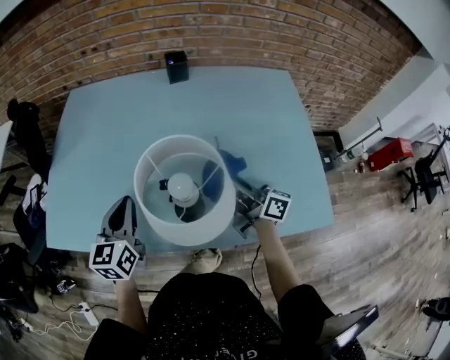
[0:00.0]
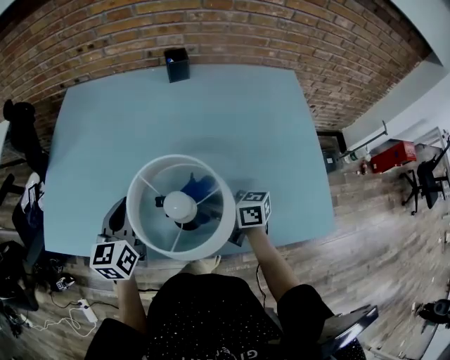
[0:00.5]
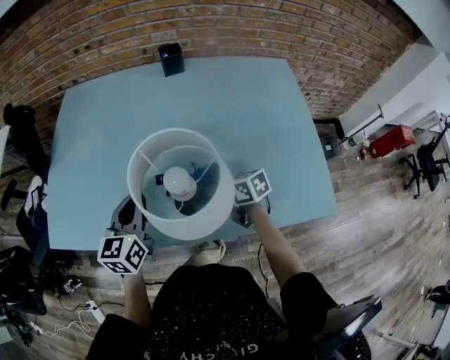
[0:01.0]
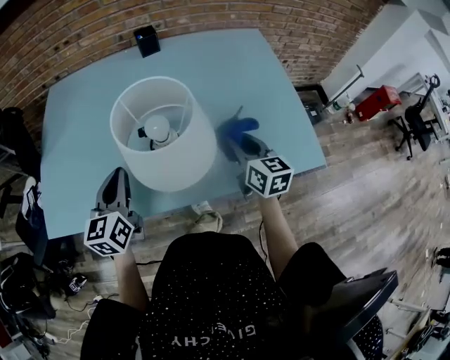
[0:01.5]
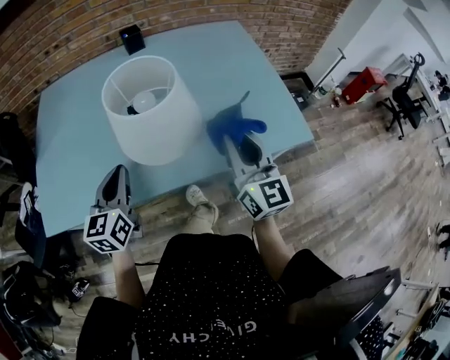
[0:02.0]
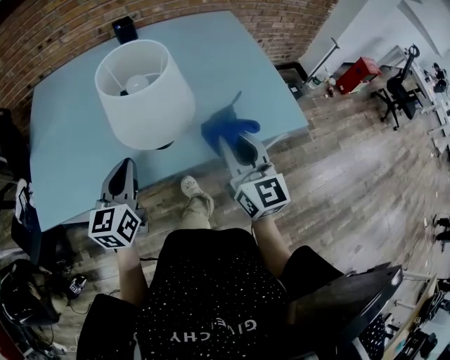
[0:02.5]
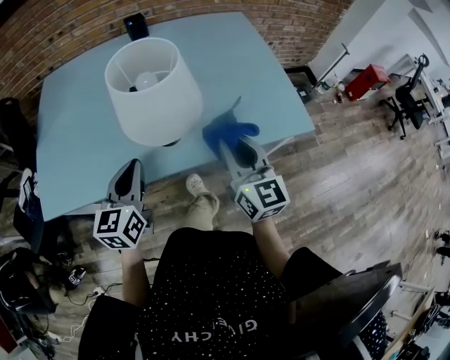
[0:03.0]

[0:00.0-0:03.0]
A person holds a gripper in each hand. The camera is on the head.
0:00.0 to 0:01.5: The right gripper moves some 10 cm downward and comes back, and turns by some 50 degrees.
0:01.5 to 0:03.0: The left gripper moves backward and to the right, about 10 cm. The right gripper moves backward and upward, approximately 15 cm.

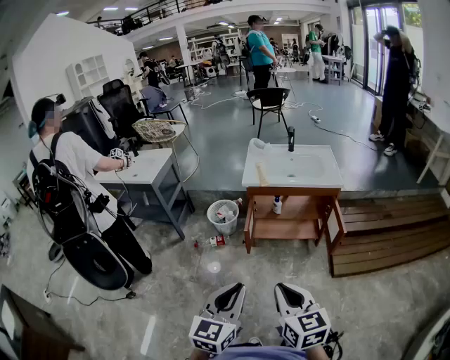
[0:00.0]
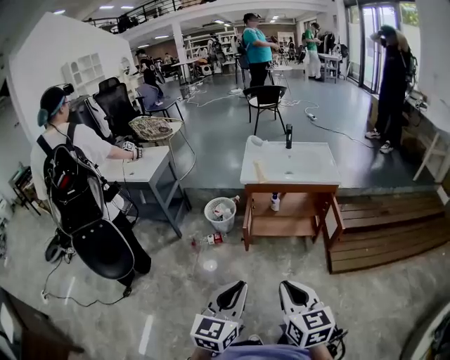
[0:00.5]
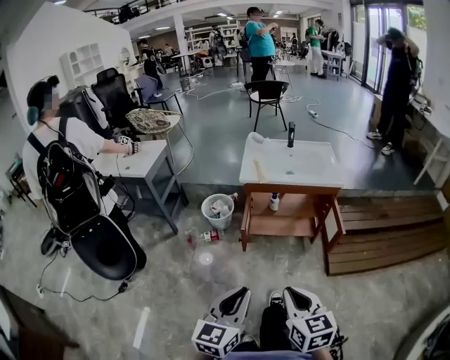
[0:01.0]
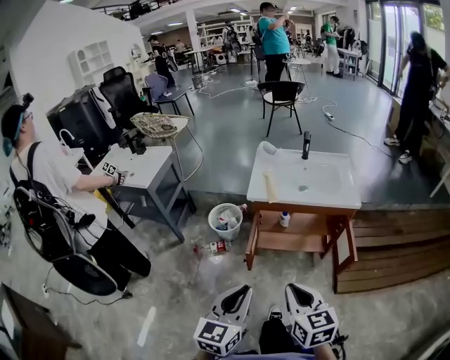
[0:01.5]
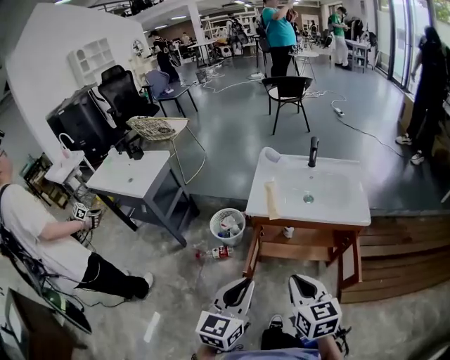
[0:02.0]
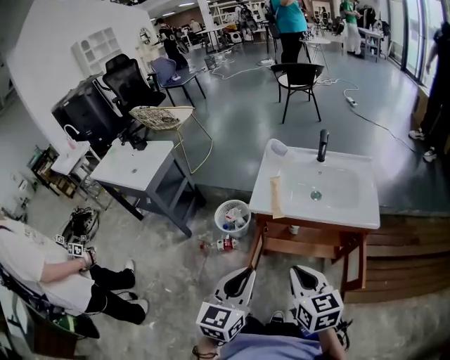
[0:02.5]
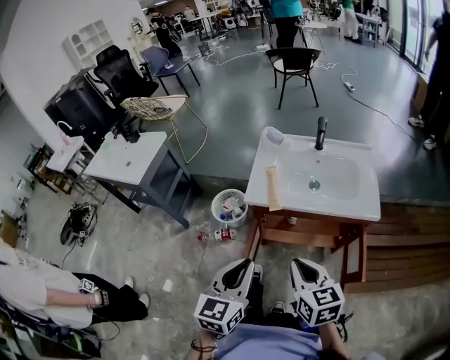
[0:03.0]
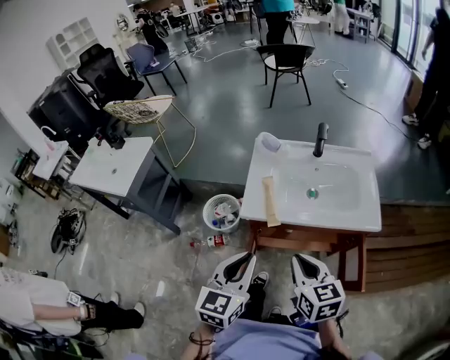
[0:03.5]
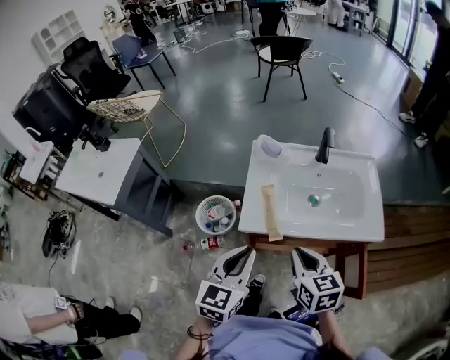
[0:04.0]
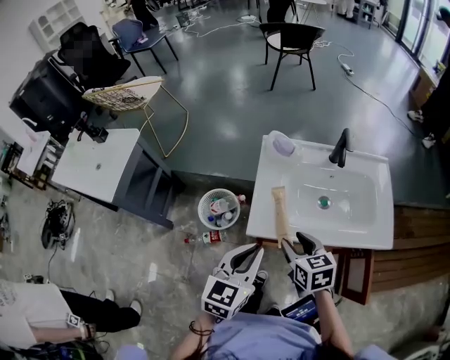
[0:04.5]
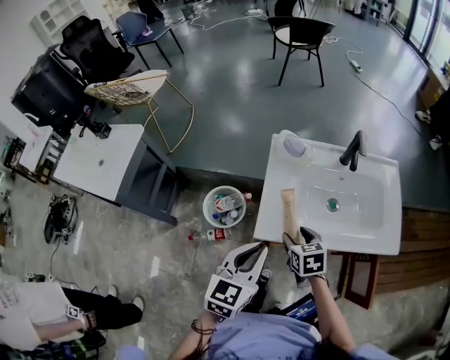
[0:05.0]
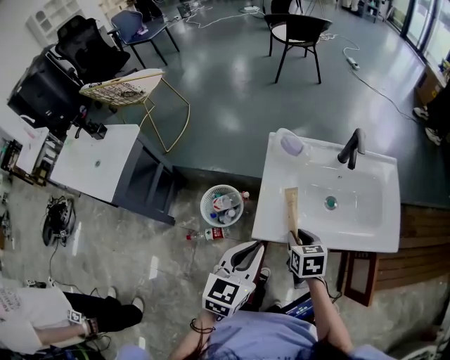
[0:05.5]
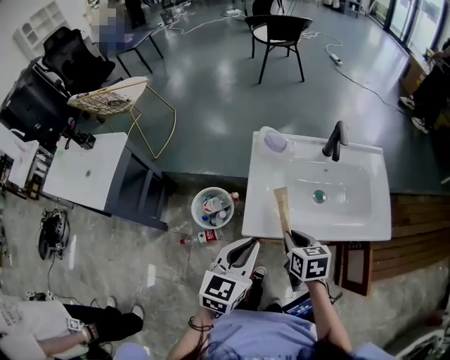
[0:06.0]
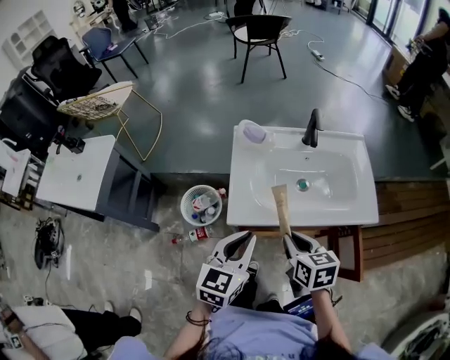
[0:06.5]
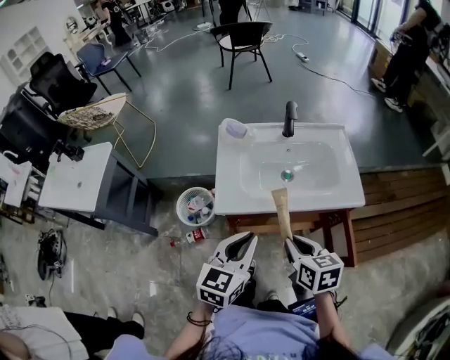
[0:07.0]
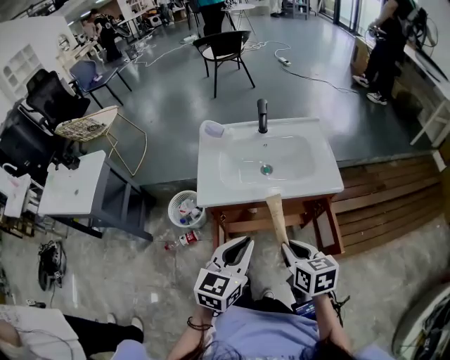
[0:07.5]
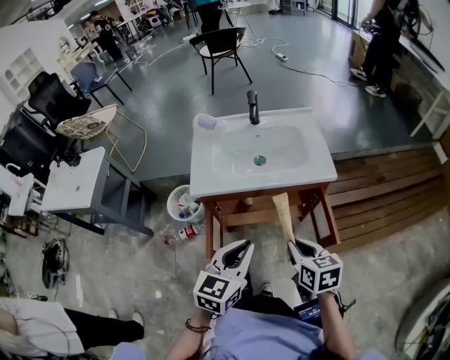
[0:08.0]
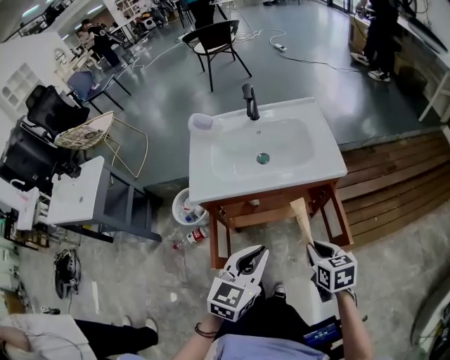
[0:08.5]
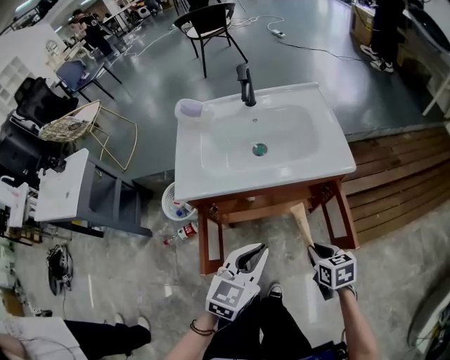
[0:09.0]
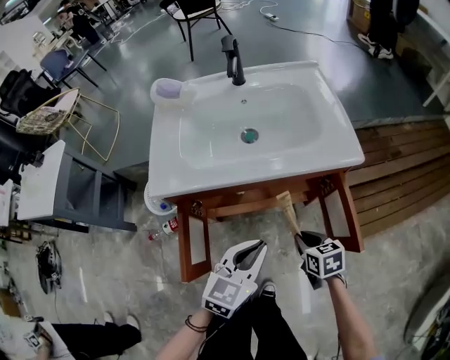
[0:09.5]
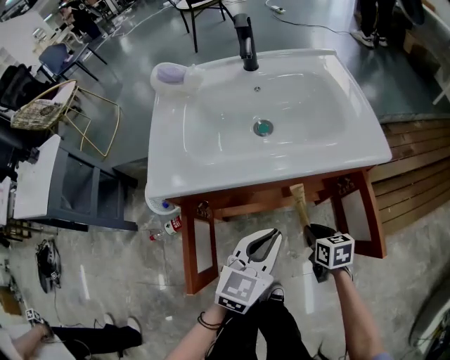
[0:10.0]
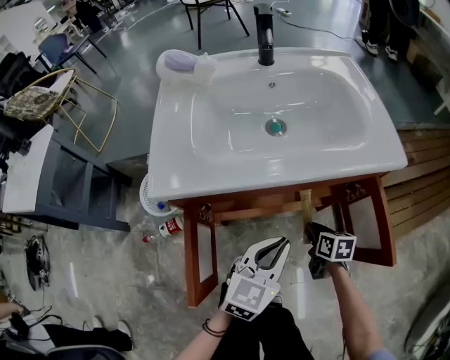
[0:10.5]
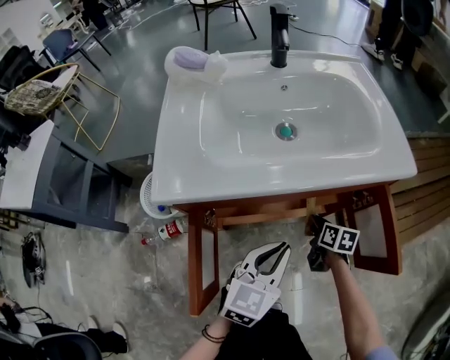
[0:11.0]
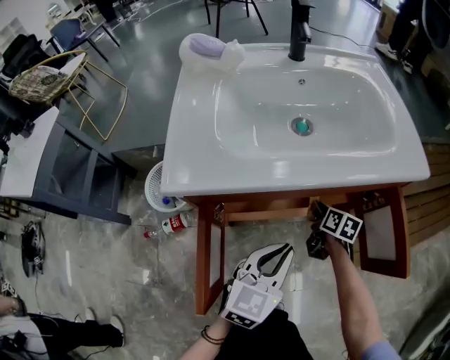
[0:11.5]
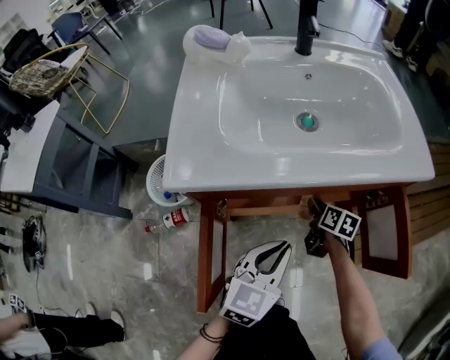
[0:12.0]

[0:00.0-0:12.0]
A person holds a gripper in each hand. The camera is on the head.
0:00.0 to 0:02.0: The grippers both shift forward by about 30 cm.
0:02.0 to 0:04.0: The grippers both shift forward by roughly 25 cm.
0:04.0 to 0:06.0: The right gripper moves downward and forward, about 15 cm, and opens and closes again. The left gripper is displaced forward by about 5 cm.
0:06.0 to 0:08.0: Both grippers travel together backward and to the right, about 30 cm.
0:08.0 to 0:10.0: The right gripper is displaced downward by approximately 35 cm. The left gripper is displaced downward and forward by some 25 cm.
0:10.0 to 0:12.0: The left gripper goes roughly 10 cm downward and to the left. Meanwhile the right gripper travels forward, to the left and downward by about 15 cm, and swivels approximately 20 degrees.

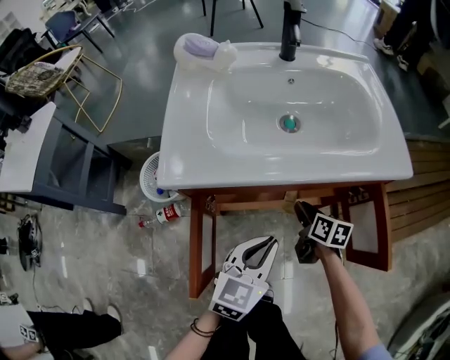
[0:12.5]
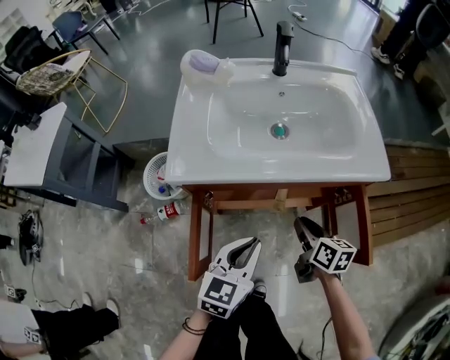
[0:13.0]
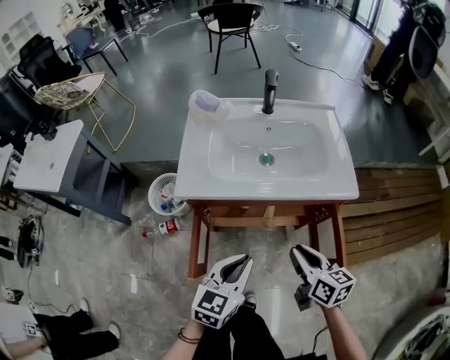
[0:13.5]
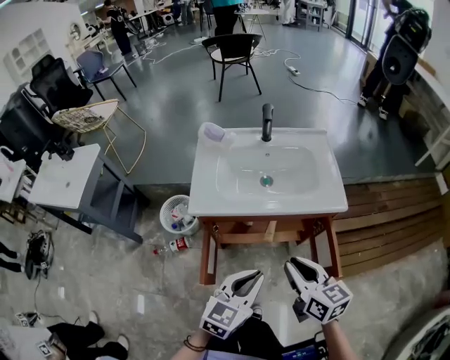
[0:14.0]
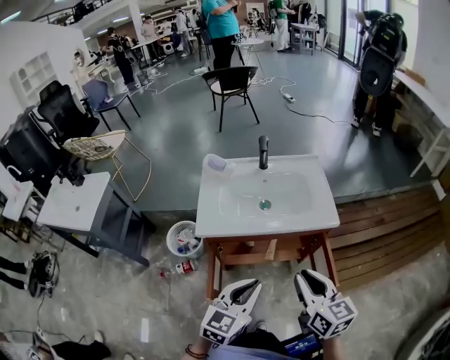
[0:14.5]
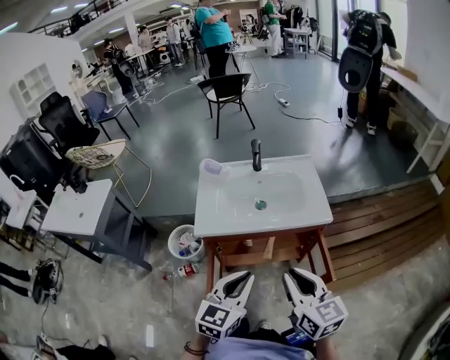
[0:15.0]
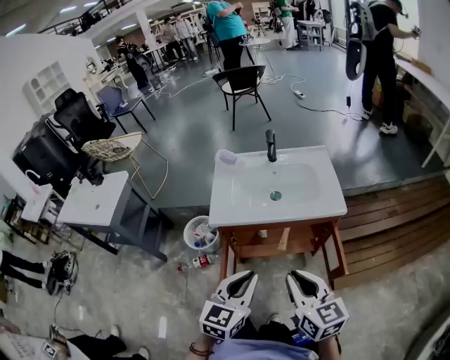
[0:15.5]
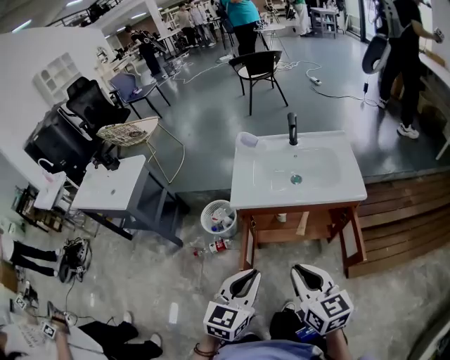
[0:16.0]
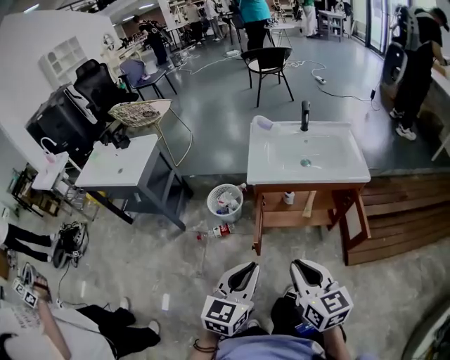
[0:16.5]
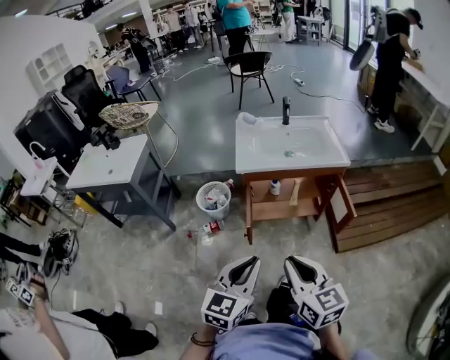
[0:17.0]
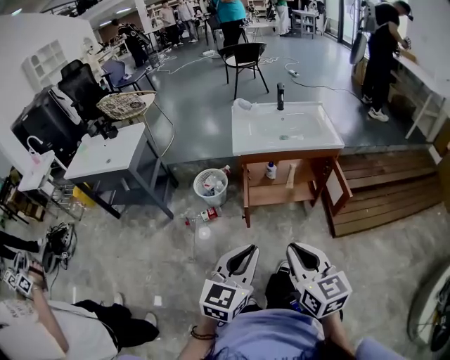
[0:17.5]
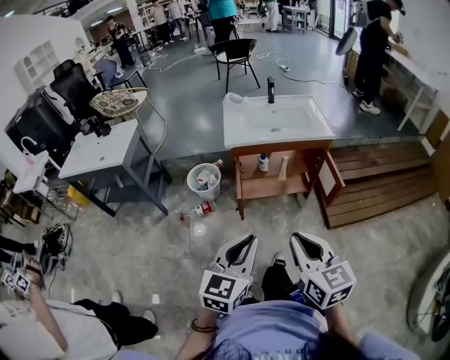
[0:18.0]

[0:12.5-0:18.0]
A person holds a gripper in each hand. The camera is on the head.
0:12.5 to 0:14.5: The left gripper shifts roughly 30 cm upward, while the right gripper shifts some 50 cm upward and backward, and swivels roughly 30 degrees.
0:14.5 to 0:16.0: The two grippers go approximately 10 cm to the left and backward.
0:16.0 to 0:18.0: Both grippers move backward, approximately 25 cm.

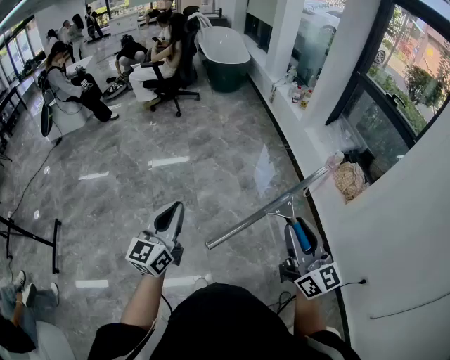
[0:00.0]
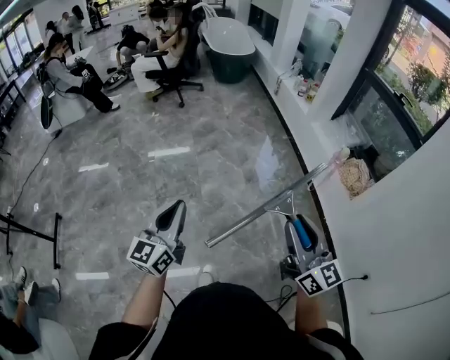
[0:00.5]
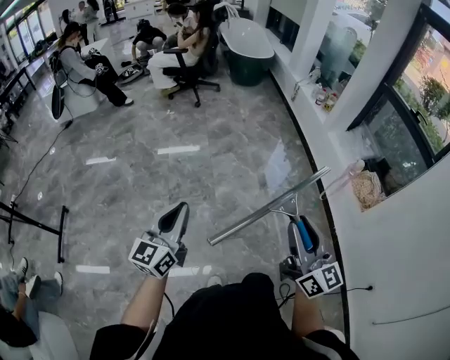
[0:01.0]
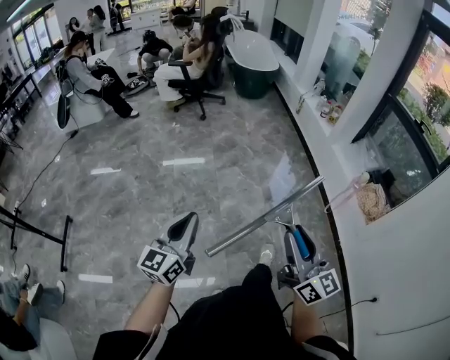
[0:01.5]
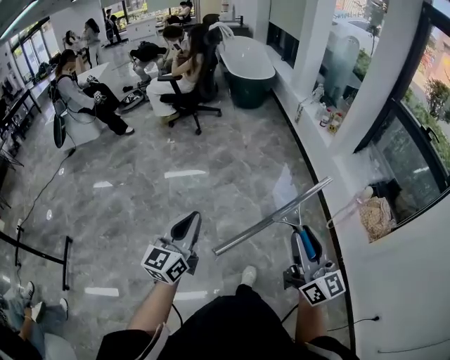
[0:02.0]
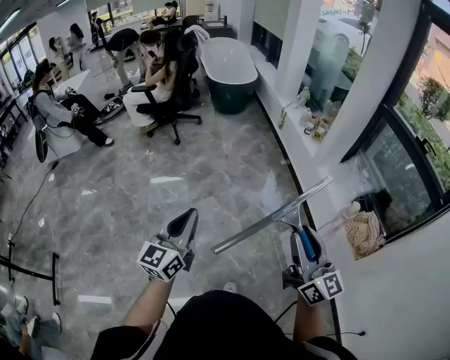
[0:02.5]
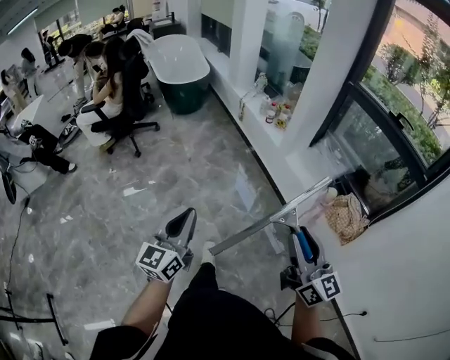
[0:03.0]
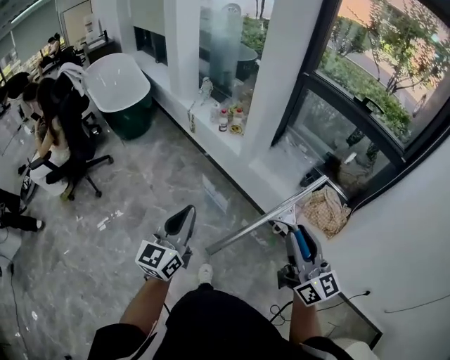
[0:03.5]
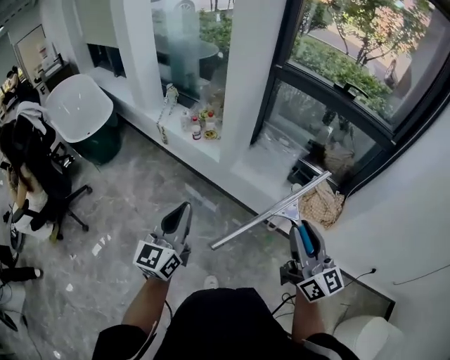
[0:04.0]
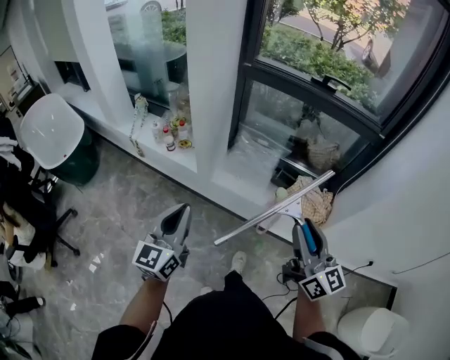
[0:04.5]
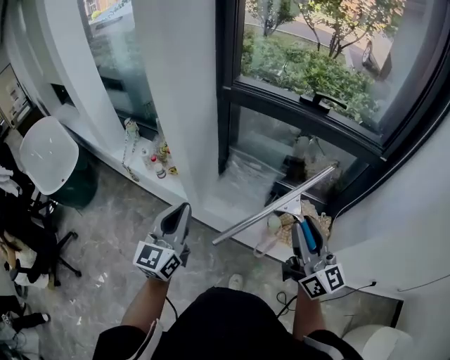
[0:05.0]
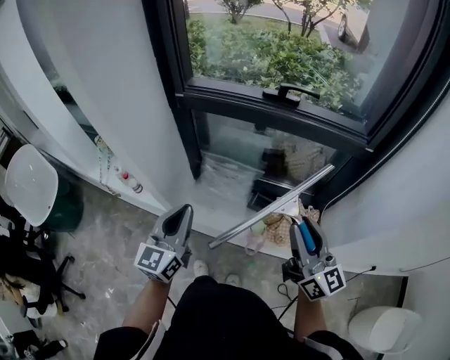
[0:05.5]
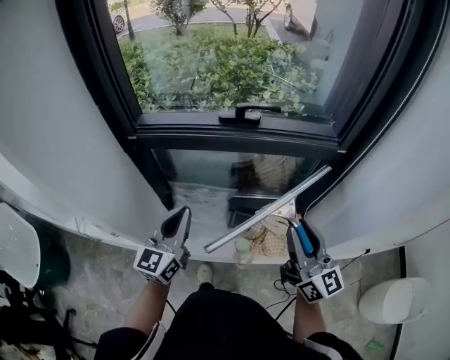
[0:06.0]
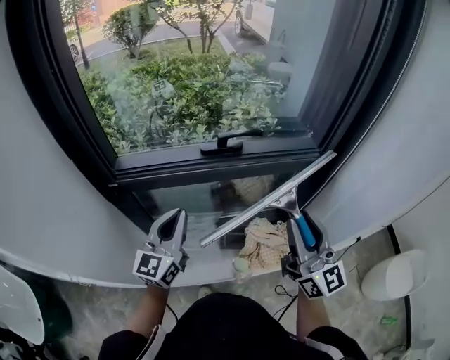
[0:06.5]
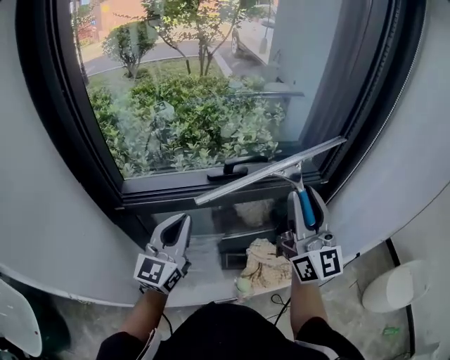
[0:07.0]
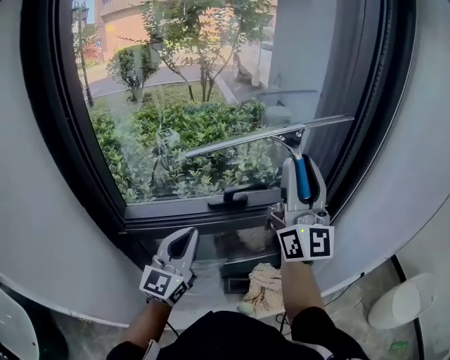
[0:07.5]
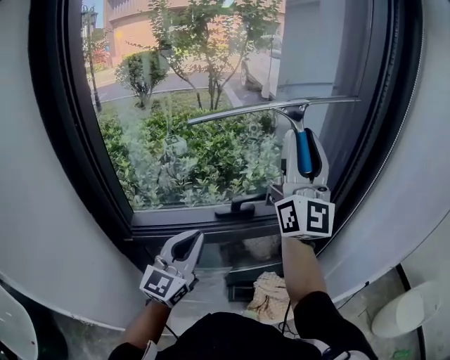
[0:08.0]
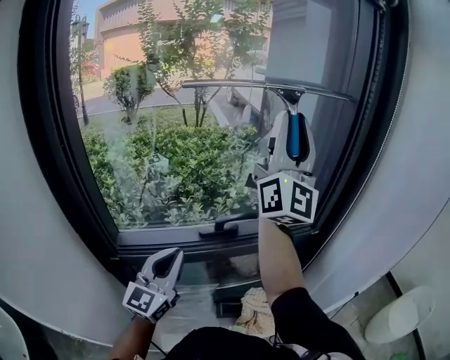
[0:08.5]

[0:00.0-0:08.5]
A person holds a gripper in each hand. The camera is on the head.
0:00.0 to 0:02.0: Both grippers move forward, about 20 cm.
0:02.0 to 0:04.0: The pair of grippers is taken some 60 cm. The right gripper changes its angle by roughly 50 degrees, while the left gripper rotates roughly 40 degrees.
0:04.0 to 0:06.5: The two grippers travel together, about 50 cm. The right gripper swivels roughly 50 degrees. Meanwhile the left gripper changes its angle by some 40 degrees.
0:06.5 to 0:08.5: The left gripper is displaced upward and forward by approximately 10 cm. The right gripper shifts about 35 cm upward and forward, and tilts its fingers approximately 40 degrees upward.
